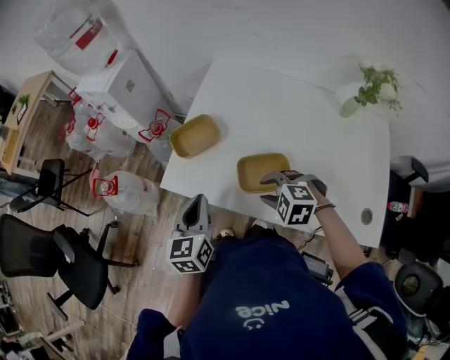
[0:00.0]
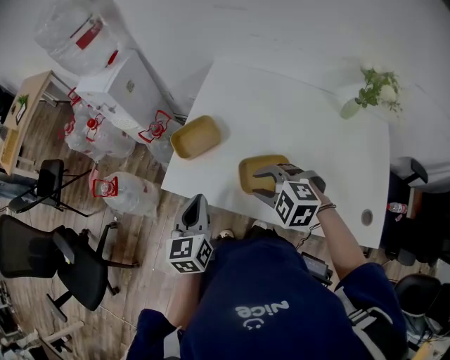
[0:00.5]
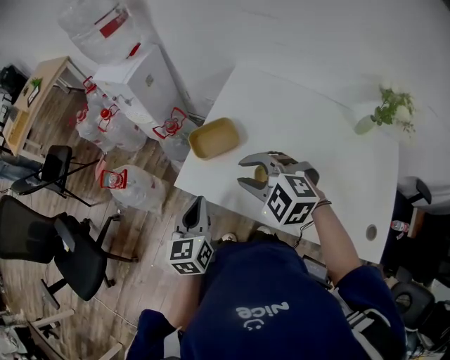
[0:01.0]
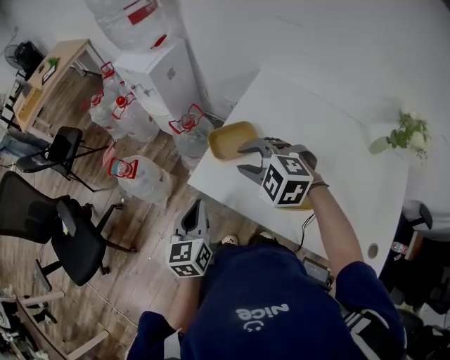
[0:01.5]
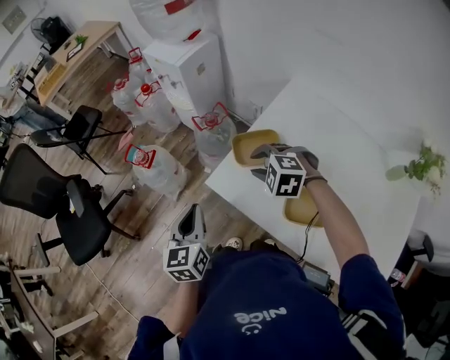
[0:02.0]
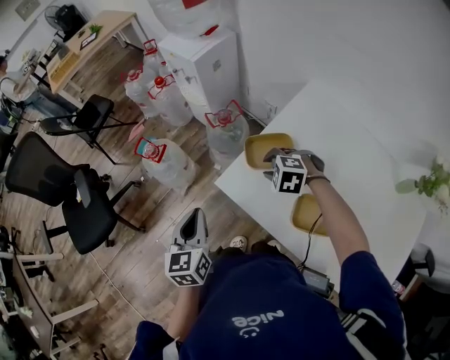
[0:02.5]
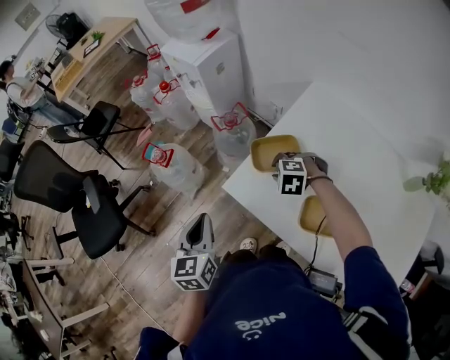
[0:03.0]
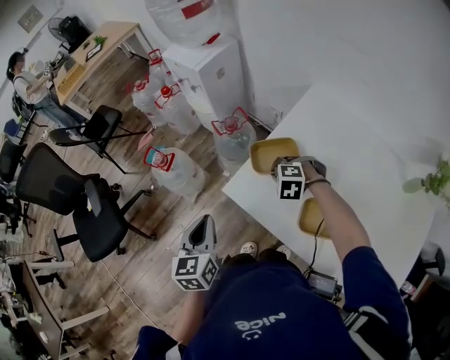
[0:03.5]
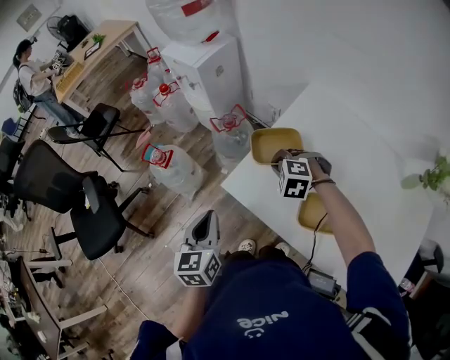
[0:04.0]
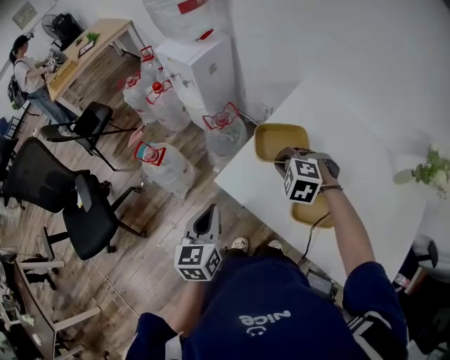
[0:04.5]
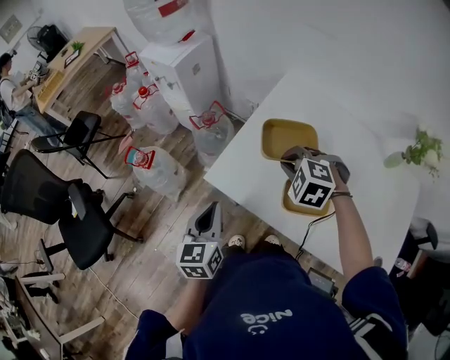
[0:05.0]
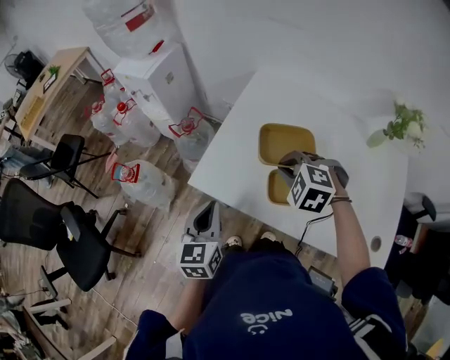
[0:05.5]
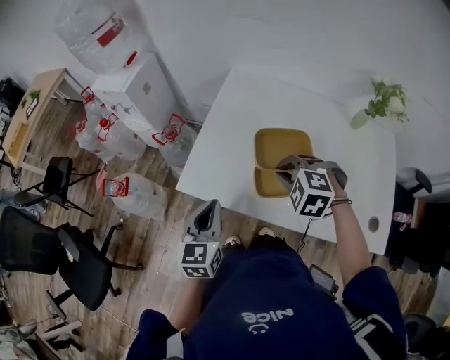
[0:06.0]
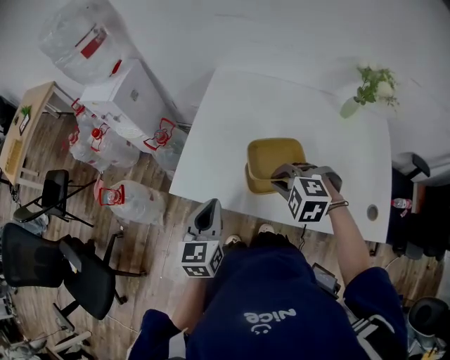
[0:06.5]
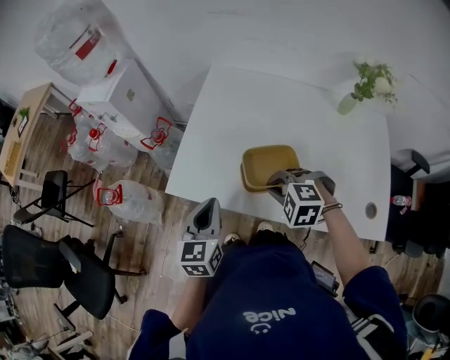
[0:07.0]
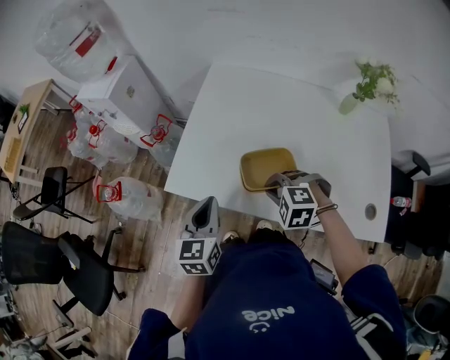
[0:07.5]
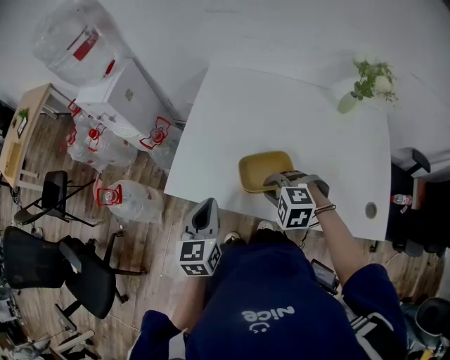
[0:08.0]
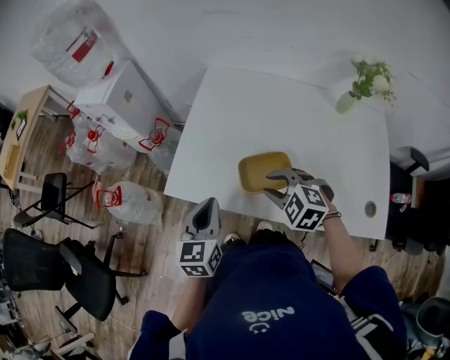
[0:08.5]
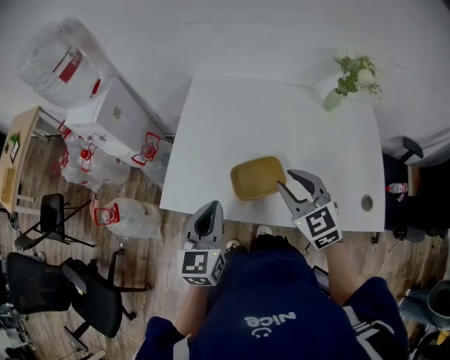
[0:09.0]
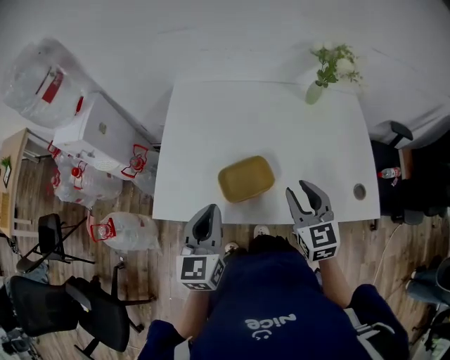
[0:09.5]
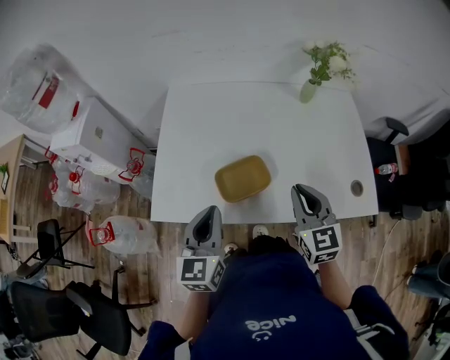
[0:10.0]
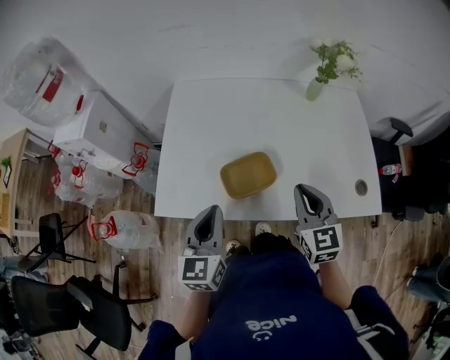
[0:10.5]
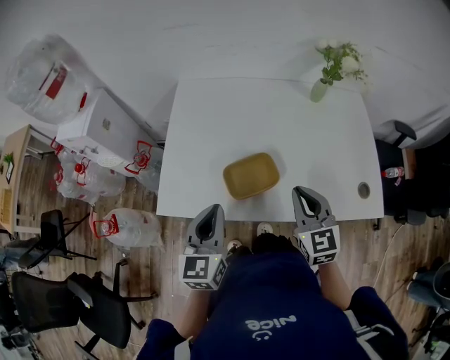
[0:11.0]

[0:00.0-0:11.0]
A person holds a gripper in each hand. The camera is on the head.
0:00.0 to 0:02.0: The left gripper goes roughly 15 cm to the left, and swivels some 20 degrees. Meanwhile the right gripper is displaced forward and to the left by roughly 25 cm, and rotates roughly 20 degrees.
0:02.0 to 0:03.5: The right gripper heads downward, covering about 10 cm, and closes.
0:03.5 to 0:05.5: The right gripper shifts approximately 20 cm backward, upward and to the right, and rotates about 30 degrees. Meanwhile the left gripper moves to the right, roughly 10 cm, and swivels some 20 degrees.
0:05.5 to 0:07.5: The right gripper travels backward and downward by roughly 15 cm. The left gripper goes about 10 cm to the right.
0:07.5 to 0:09.0: The left gripper changes place by about 5 cm. Meanwhile the right gripper goes some 15 cm upward and to the right, and tilts its fingers roughly 40 degrees upward.
0:09.0 to 0:11.0: The right gripper travels to the right by some 5 cm, and rotates about 20 degrees.

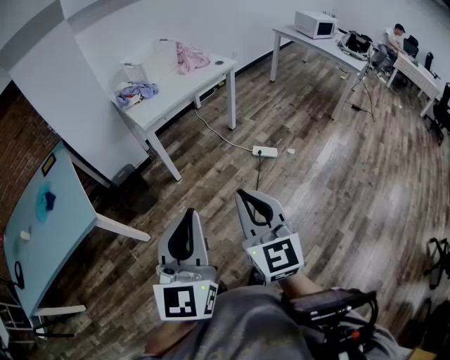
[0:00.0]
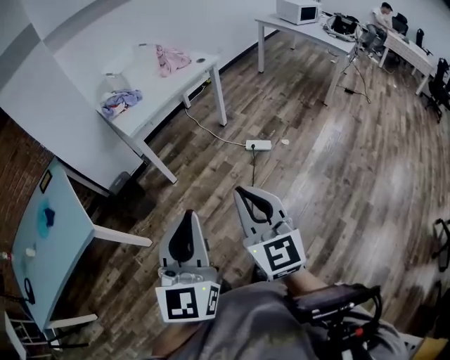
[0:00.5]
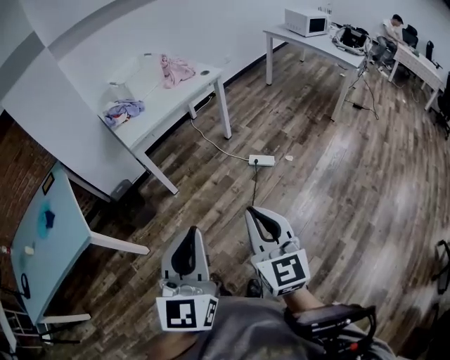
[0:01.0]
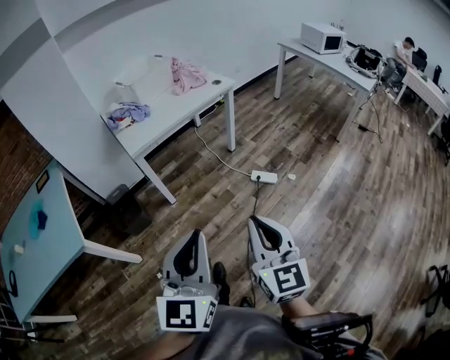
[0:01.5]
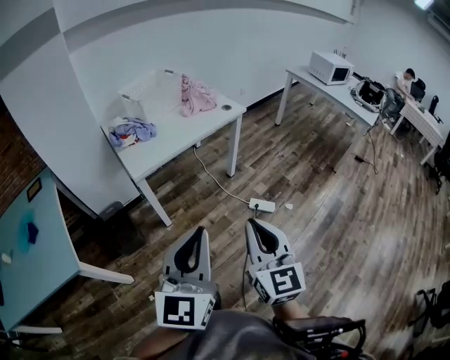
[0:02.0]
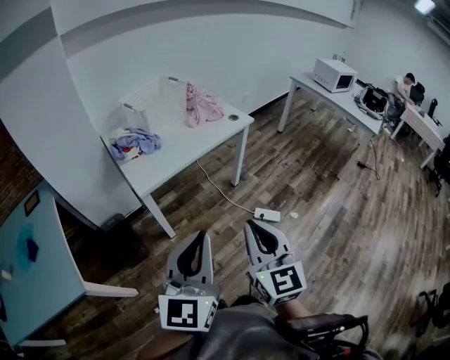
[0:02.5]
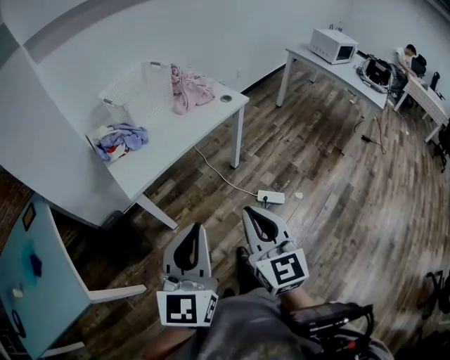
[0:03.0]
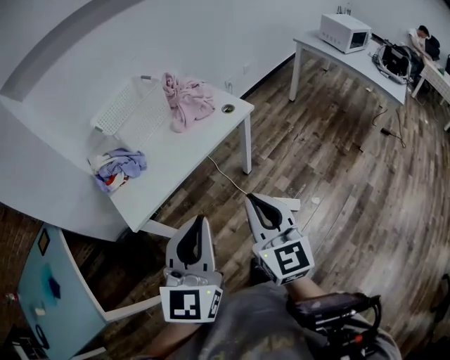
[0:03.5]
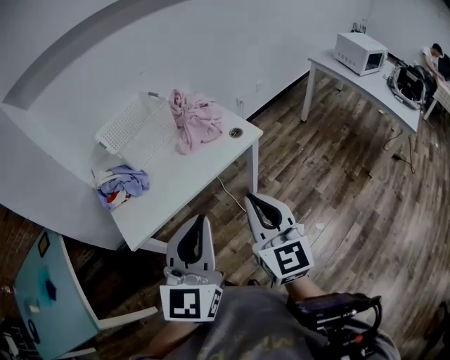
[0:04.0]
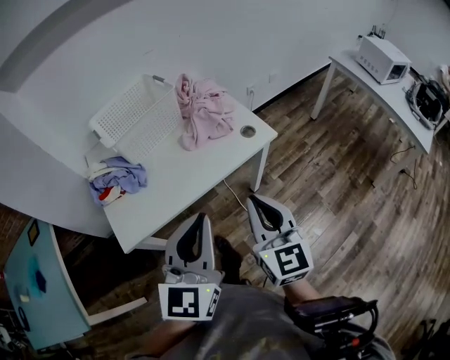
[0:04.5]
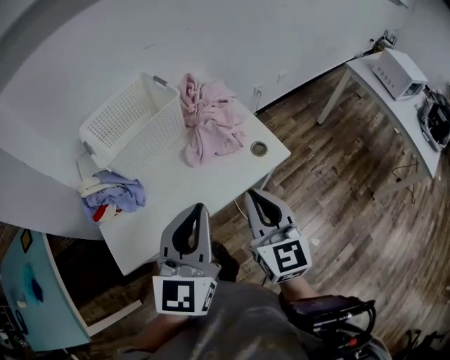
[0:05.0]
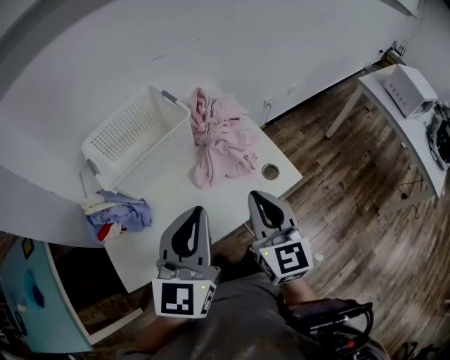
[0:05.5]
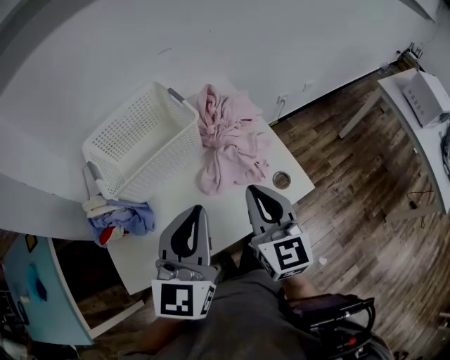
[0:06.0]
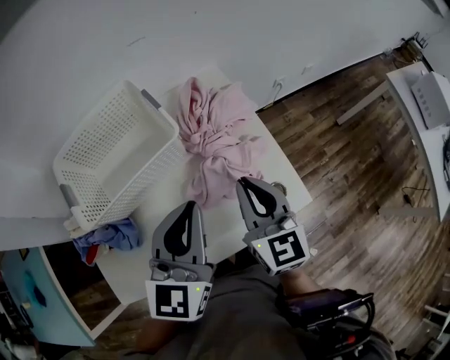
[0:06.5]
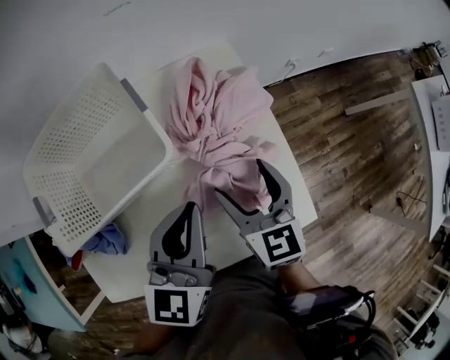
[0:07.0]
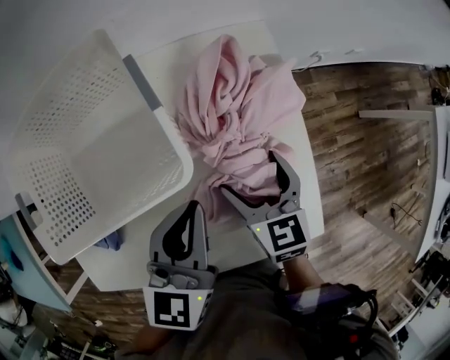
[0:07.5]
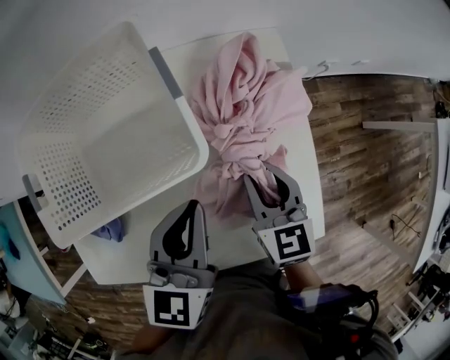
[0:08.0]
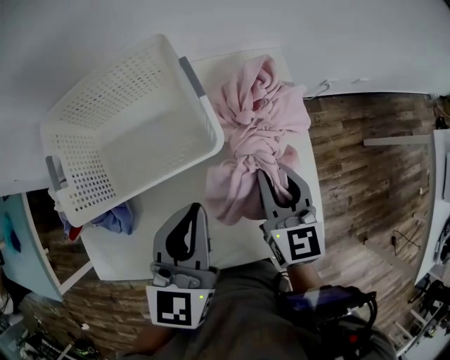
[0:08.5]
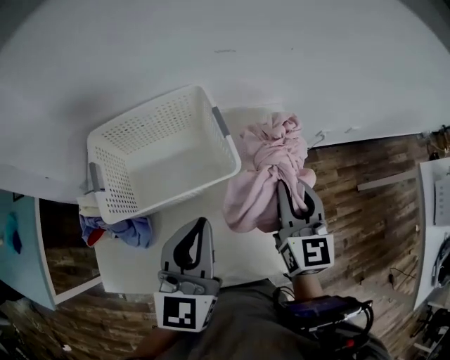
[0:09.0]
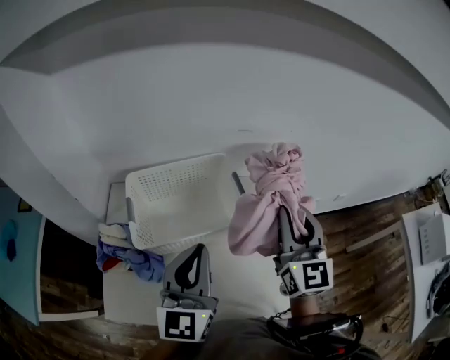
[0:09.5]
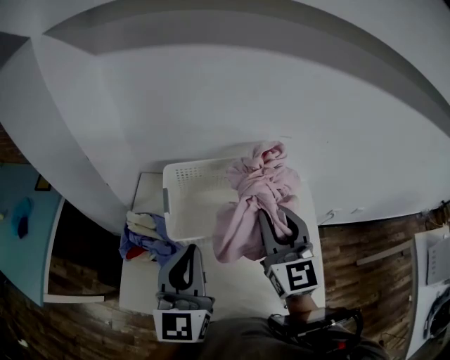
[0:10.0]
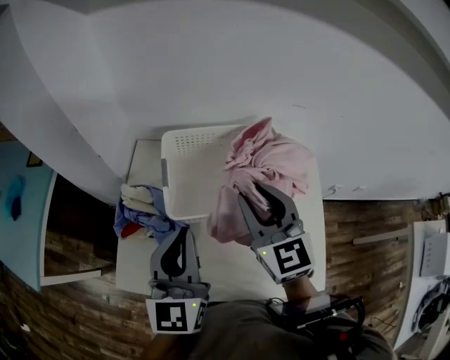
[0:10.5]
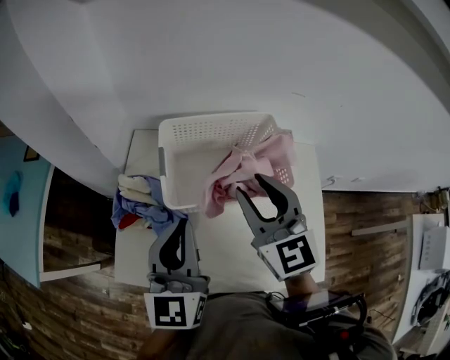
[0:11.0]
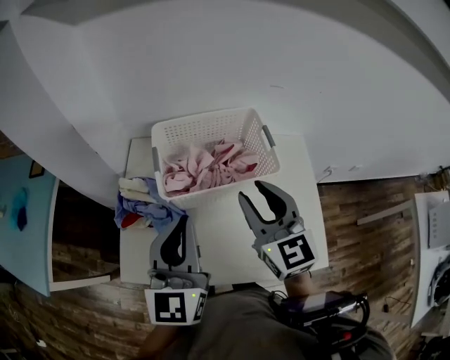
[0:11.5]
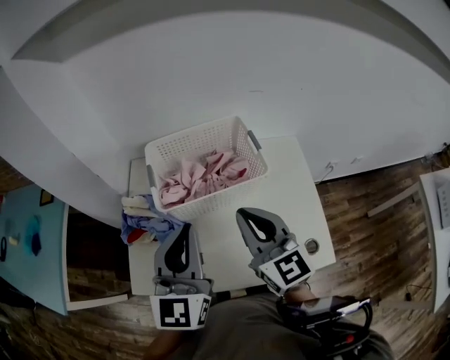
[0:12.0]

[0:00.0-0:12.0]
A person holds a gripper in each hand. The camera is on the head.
0:00.0 to 0:02.0: Both grippers move forward, roughly 25 cm.
0:02.0 to 0:04.0: Both grippers travel together forward, approximately 40 cm.
0:04.0 to 0:06.0: The two grippers go about 35 cm forward.
0:06.0 to 0:08.0: The grippers both shift forward and downward by roughly 25 cm. The left gripper swivels approximately 30 degrees. The right gripper changes its angle by some 30 degrees, and opens and closes again.
0:08.0 to 0:10.0: The left gripper moves to the left and upward, roughly 30 cm, and turns by about 40 degrees, while the right gripper moves upward and to the left, approximately 35 cm, and points its fingers some 30 degrees further upward.
0:10.0 to 0:12.0: The left gripper shifts by approximately 5 cm, while the right gripper goes roughly 10 cm backward.

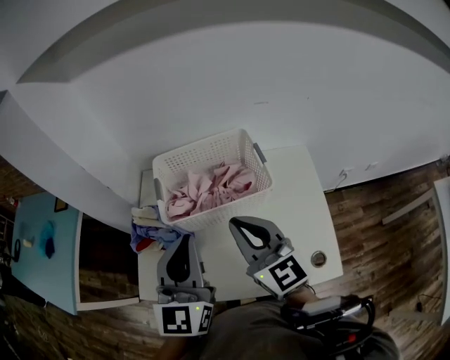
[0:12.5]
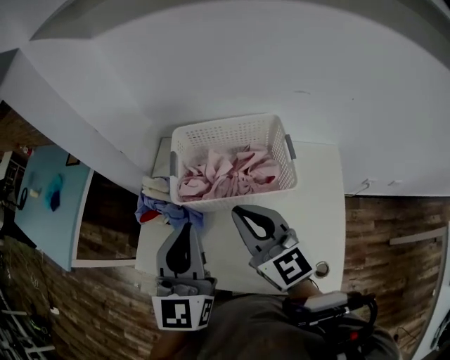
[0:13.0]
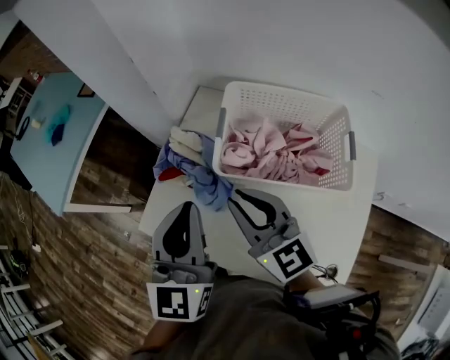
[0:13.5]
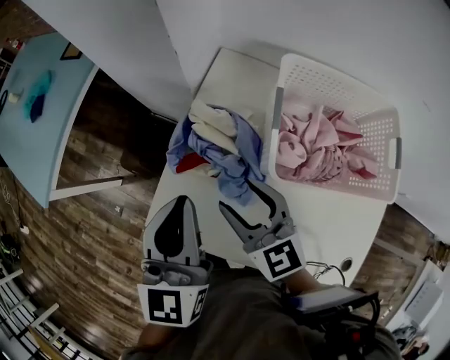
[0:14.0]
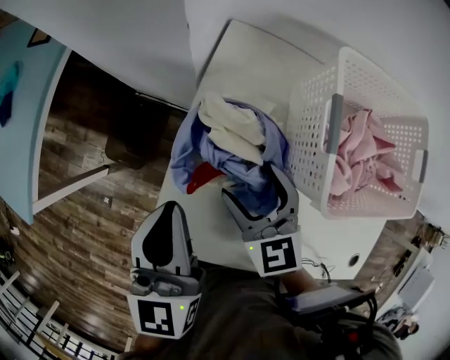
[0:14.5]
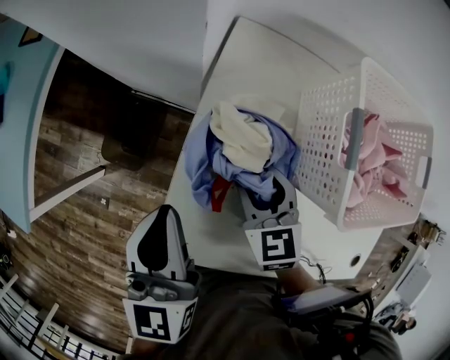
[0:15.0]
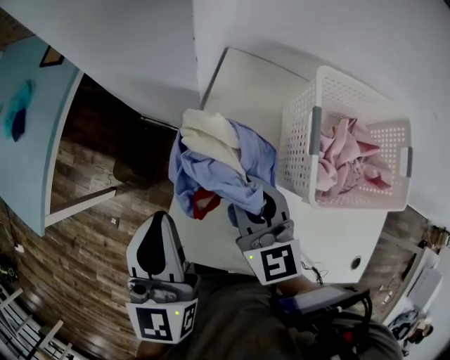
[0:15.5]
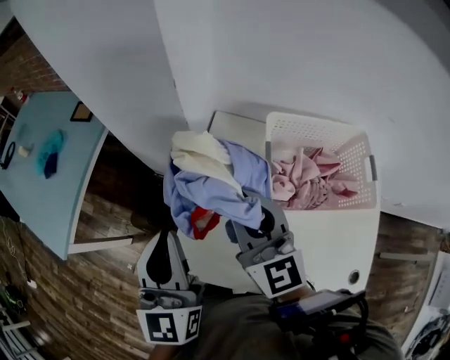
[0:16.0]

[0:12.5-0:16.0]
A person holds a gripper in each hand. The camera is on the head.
0:12.5 to 0:14.5: The left gripper shifts by approximately 35 cm, and changes its angle by about 30 degrees, while the right gripper ends up some 40 cm from where it was, tips its fingers downward by approximately 30 degrees, and opens its fingers.
0:14.5 to 0:16.0: The right gripper shifts some 20 cm upward, tilts its fingers some 30 degrees upward, and closes, while the left gripper moves upward, approximately 15 cm.
